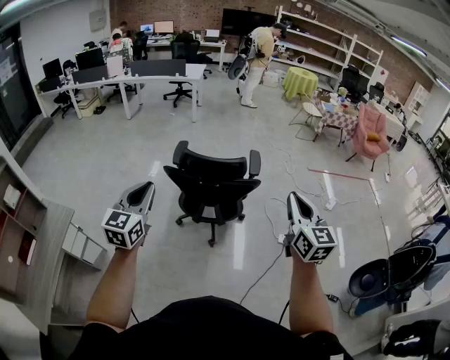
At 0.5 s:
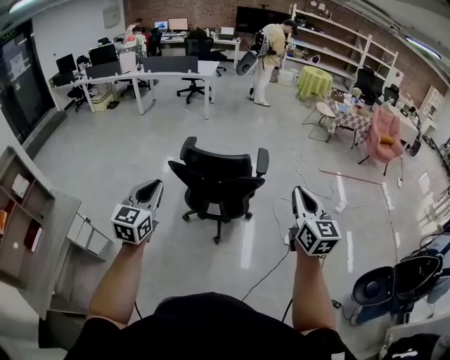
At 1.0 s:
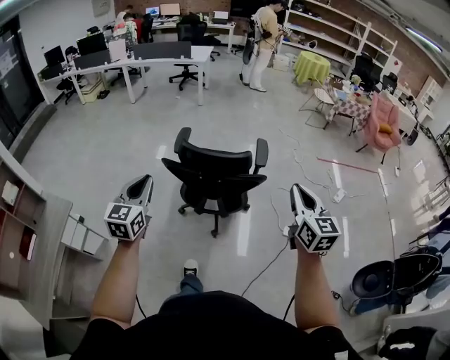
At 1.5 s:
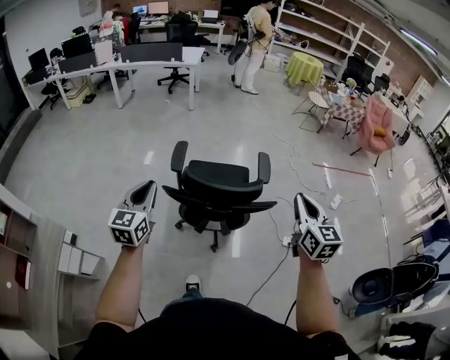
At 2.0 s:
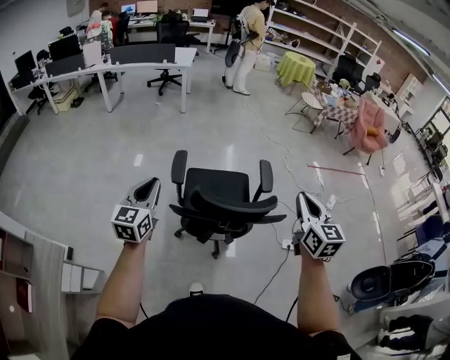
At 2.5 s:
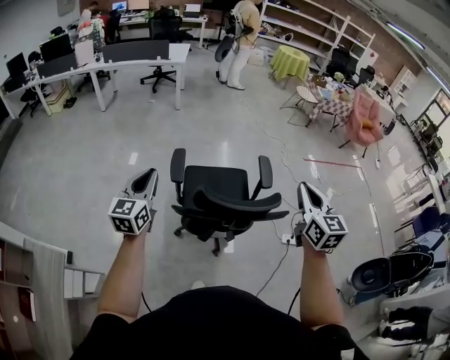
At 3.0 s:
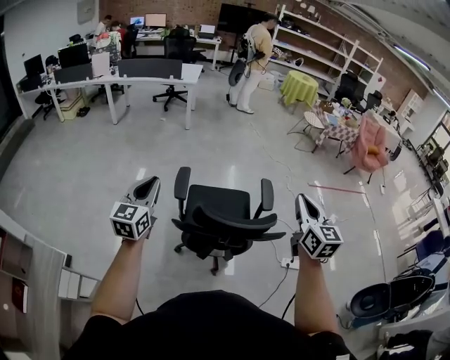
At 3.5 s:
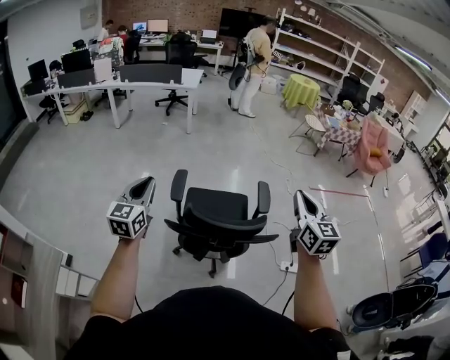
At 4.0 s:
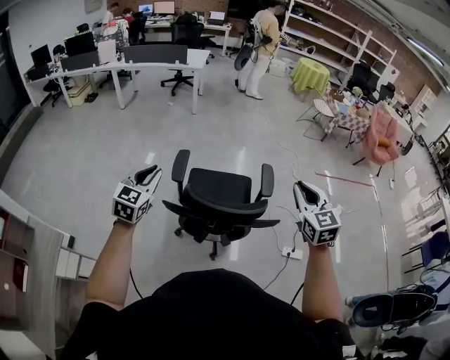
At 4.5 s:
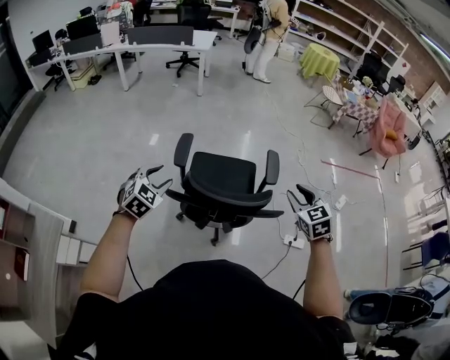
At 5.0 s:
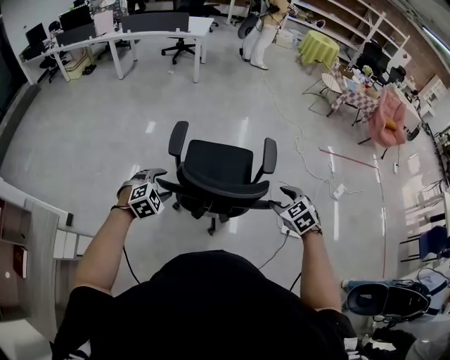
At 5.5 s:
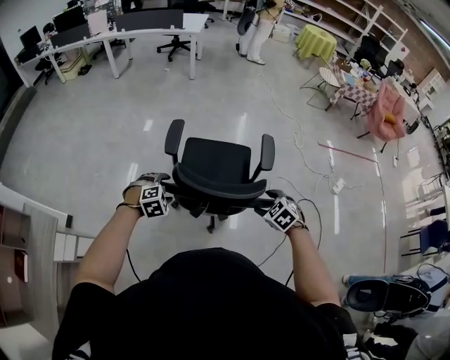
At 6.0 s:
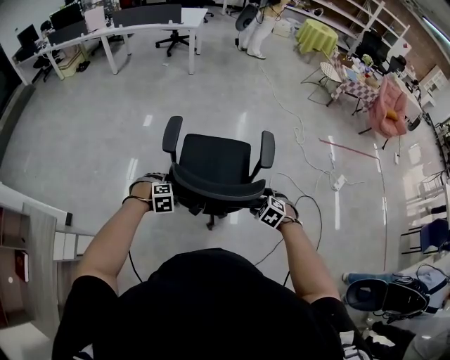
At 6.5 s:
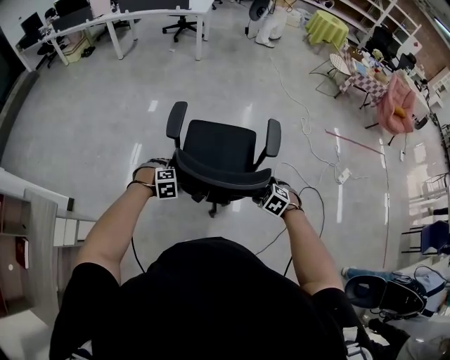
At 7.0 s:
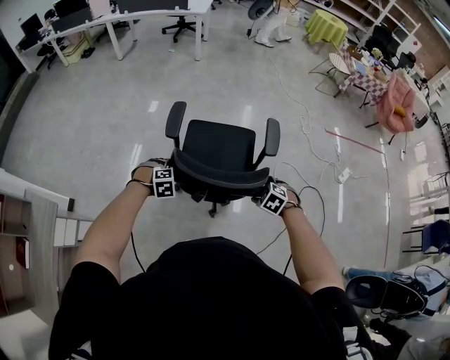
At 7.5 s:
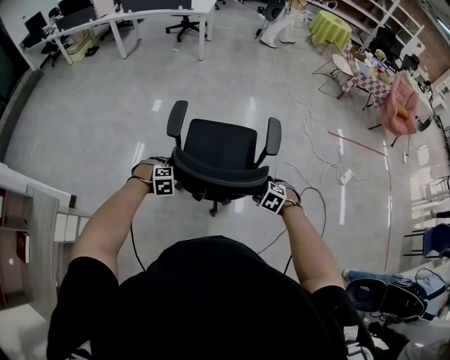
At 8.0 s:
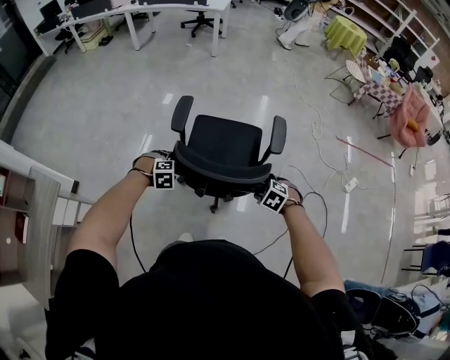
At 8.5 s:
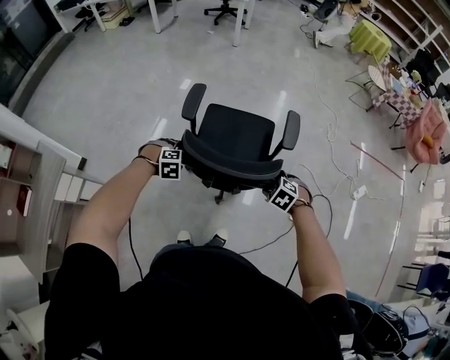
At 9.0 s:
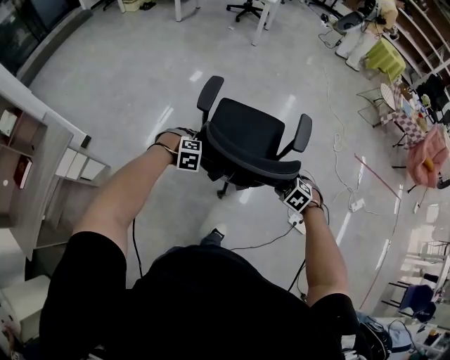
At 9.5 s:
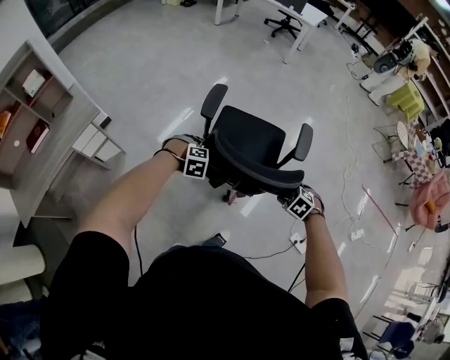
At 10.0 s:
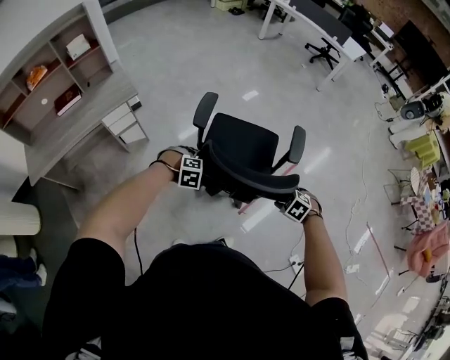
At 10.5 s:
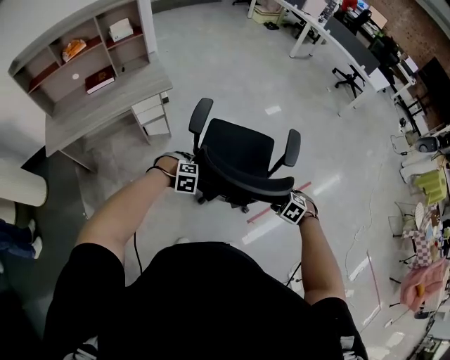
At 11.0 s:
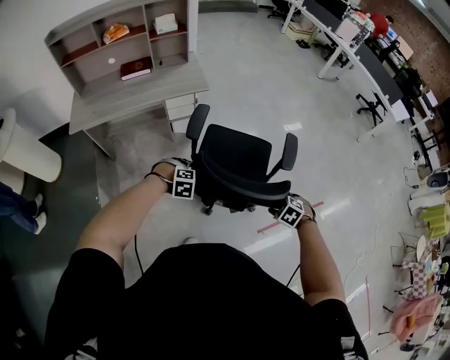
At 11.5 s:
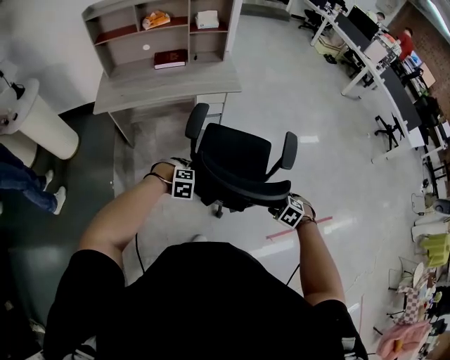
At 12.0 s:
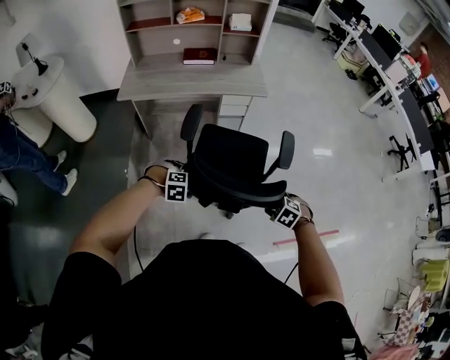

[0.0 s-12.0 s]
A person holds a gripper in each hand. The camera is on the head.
0.0 to 2.0 s: Both grippers move forward, about 30 cm.
2.0 to 4.0 s: The right gripper goes about 5 cm forward, and swivels some 20 degrees.
4.0 to 6.0 s: The grippers both shift downward by some 35 cm. The left gripper tilts its fingers roughly 60 degrees downward, and opens its fingers, while the right gripper tips its fingers downward by about 50 degrees, and opens its fingers.
6.0 to 8.0 s: The grippers make only small movements.
8.0 to 10.0 s: The right gripper shifts by approximately 20 cm, and swivels about 30 degrees, while the left gripper shifts by some 30 cm, and rotates some 30 degrees.
10.0 to 12.0 s: The two grippers travel together, roughly 50 cm. The right gripper changes its angle by approximately 40 degrees; the left gripper turns by some 40 degrees.

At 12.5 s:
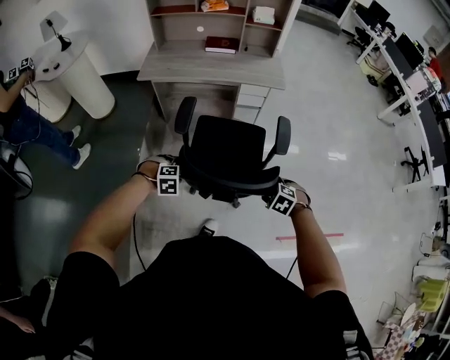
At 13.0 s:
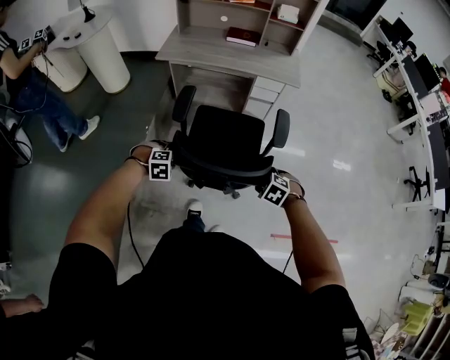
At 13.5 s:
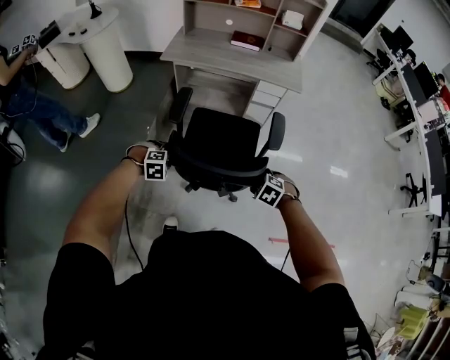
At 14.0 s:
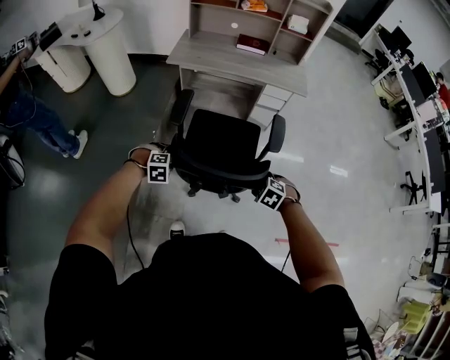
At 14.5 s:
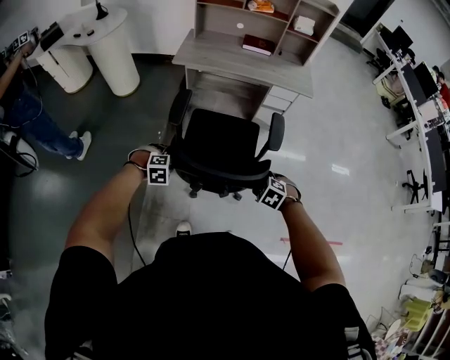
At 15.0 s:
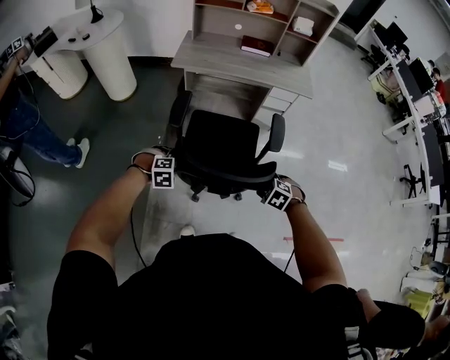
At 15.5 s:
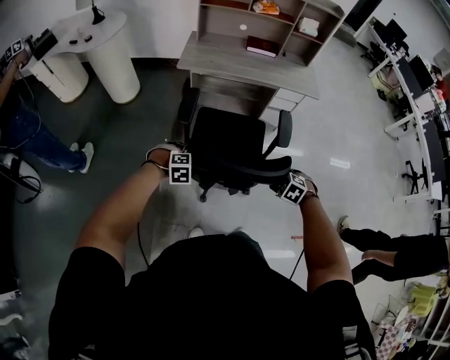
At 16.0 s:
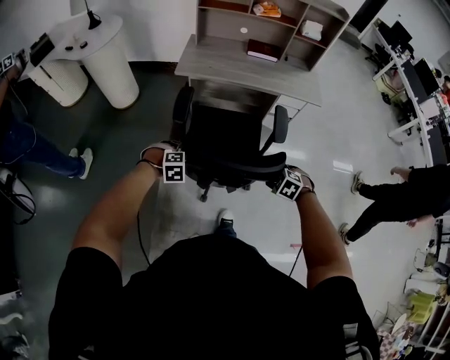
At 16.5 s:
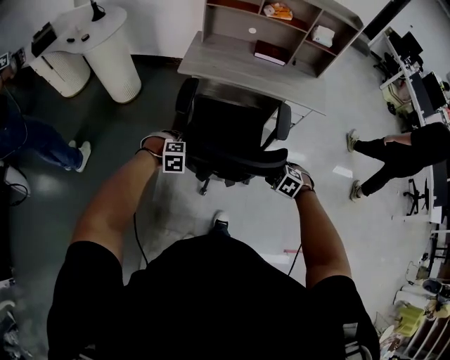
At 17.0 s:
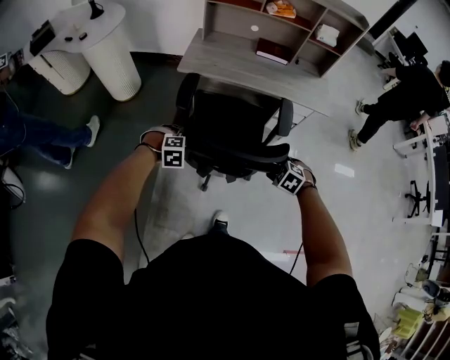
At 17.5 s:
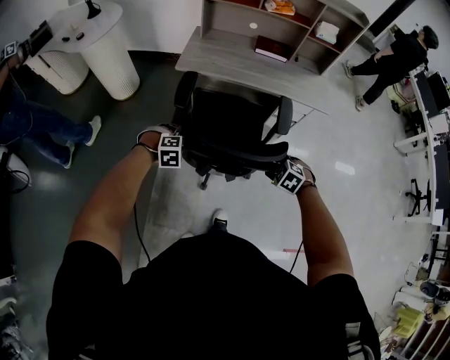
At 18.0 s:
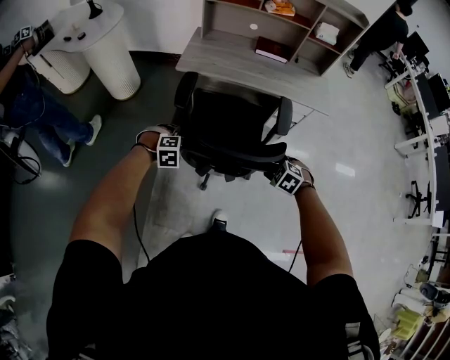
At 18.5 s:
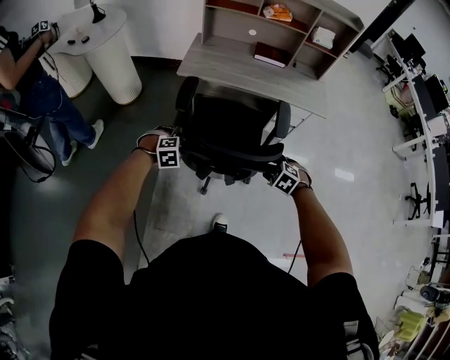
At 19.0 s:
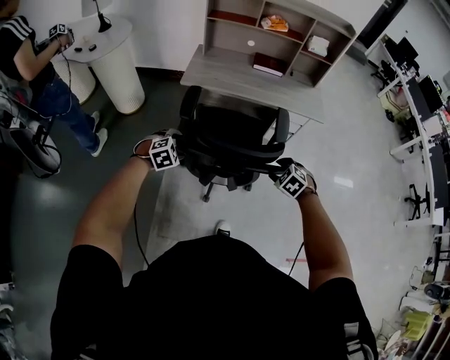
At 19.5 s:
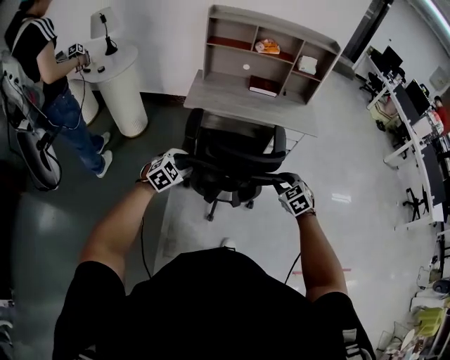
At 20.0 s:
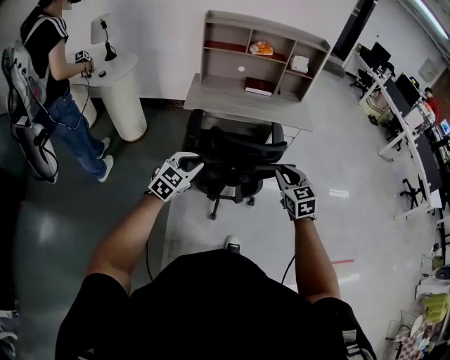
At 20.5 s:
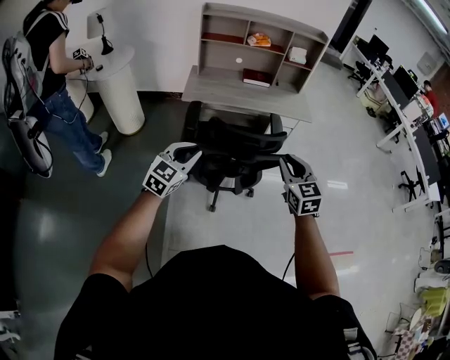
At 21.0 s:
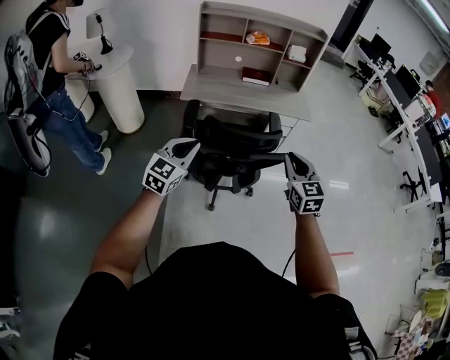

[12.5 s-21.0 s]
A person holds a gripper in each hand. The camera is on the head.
12.5 to 14.5 s: The left gripper changes place by some 20 cm, while the right gripper changes place by some 20 cm.
14.5 to 16.5 s: Both grippers travel together forward, roughly 20 cm.
16.5 to 19.0 s: The left gripper heads upward, covering roughly 5 cm.
19.0 to 21.0 s: The grippers both shift upward and backward by roughly 25 cm. The right gripper angles its fingers upward, by about 50 degrees, and closes, while the left gripper tips its fingers upward by about 50 degrees, and closes its fingers.

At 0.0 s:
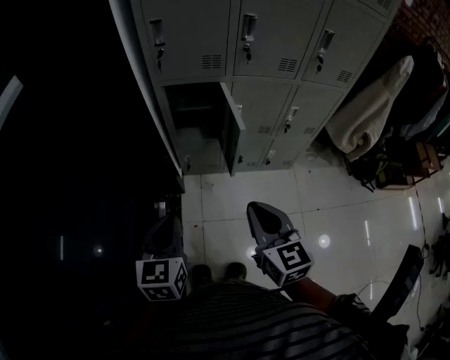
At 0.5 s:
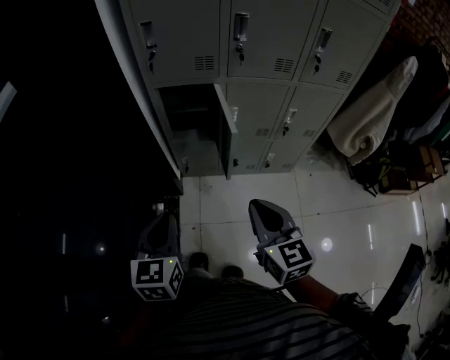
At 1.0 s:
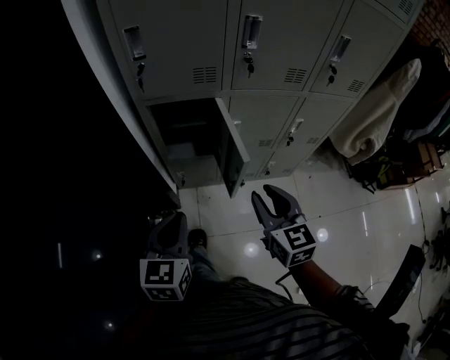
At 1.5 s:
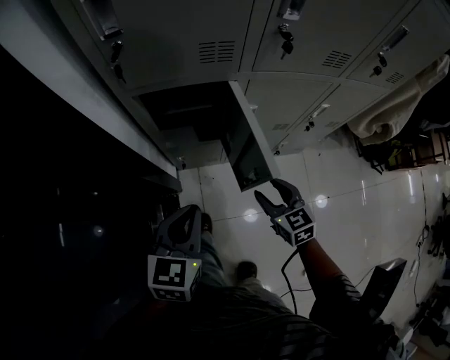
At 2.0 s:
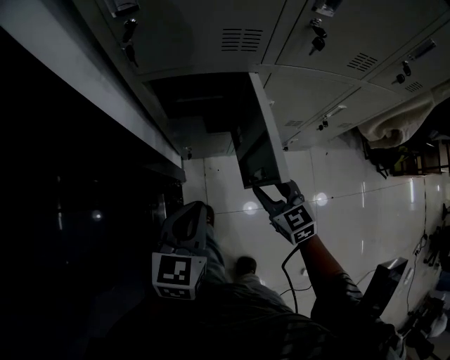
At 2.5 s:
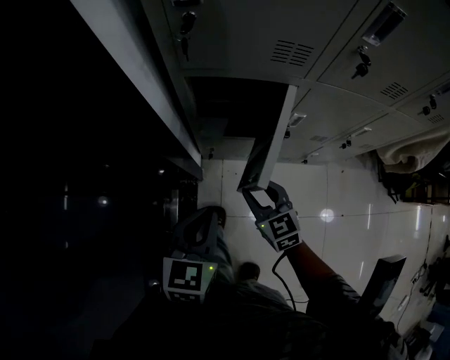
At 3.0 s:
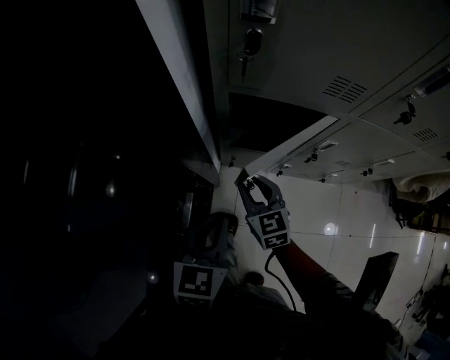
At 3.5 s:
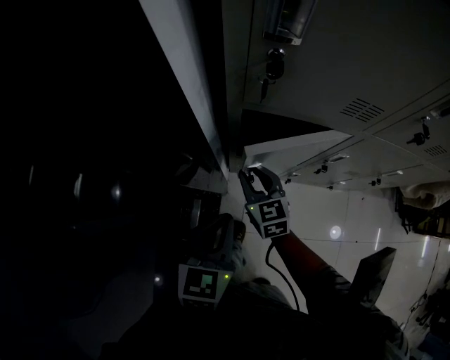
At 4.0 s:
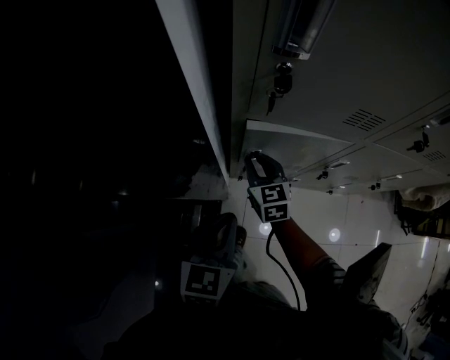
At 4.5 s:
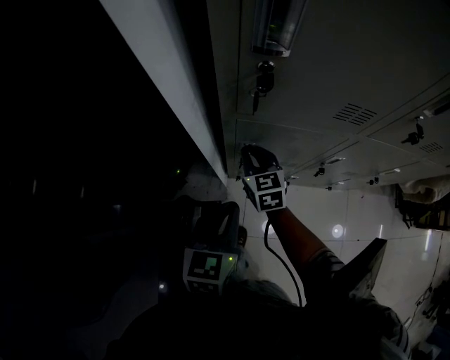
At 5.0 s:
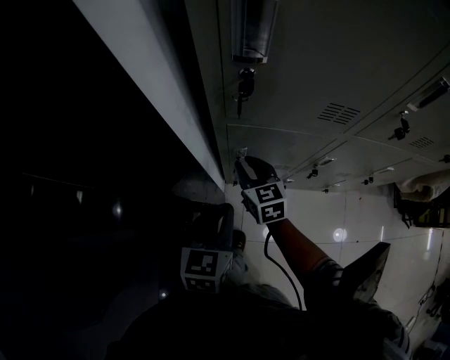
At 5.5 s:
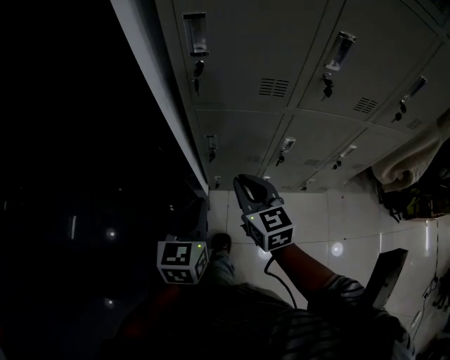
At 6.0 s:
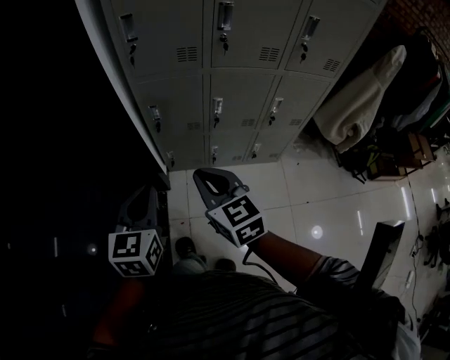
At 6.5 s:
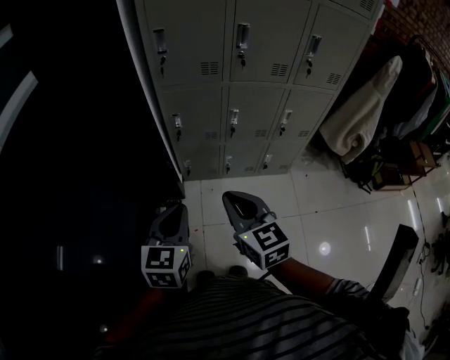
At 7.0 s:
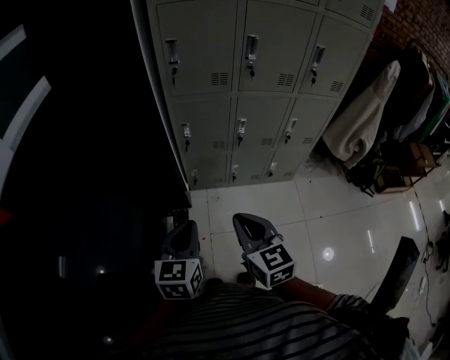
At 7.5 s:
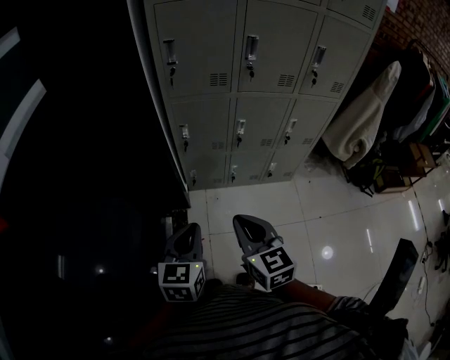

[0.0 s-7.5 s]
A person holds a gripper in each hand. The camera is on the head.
0.0 to 2.0 s: Both grippers move forward and downward, about 30 cm. The right gripper rotates approximately 20 degrees, and opens.
2.0 to 4.0 s: The left gripper shifts some 15 cm to the left and forward, while the right gripper travels forward and to the left by approximately 30 cm, and closes up.
4.0 to 5.5 s: The right gripper travels backward, upward and to the right by approximately 25 cm; the left gripper goes about 10 cm backward and upward.
5.5 to 7.5 s: Both grippers travel together backward, approximately 30 cm.
